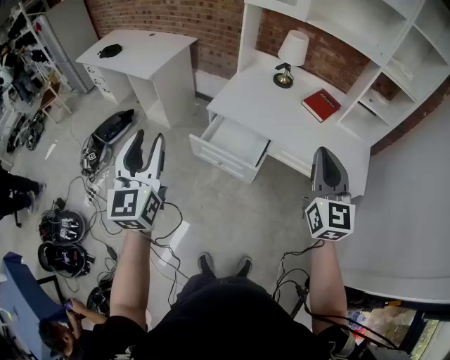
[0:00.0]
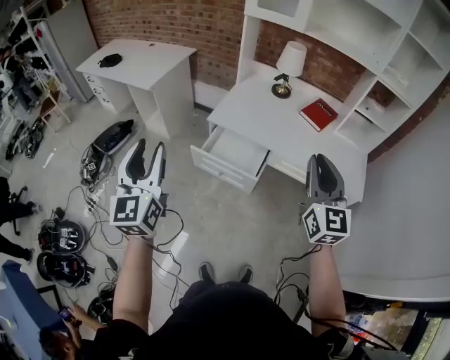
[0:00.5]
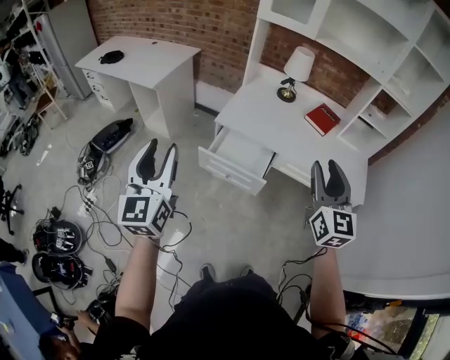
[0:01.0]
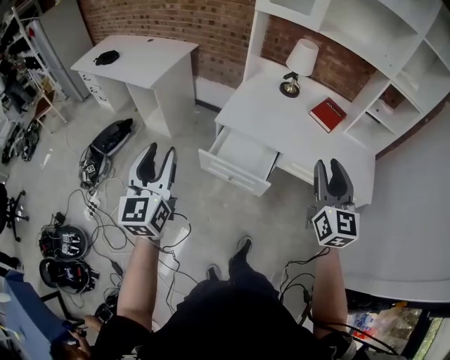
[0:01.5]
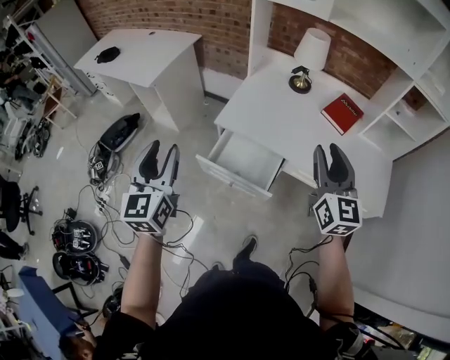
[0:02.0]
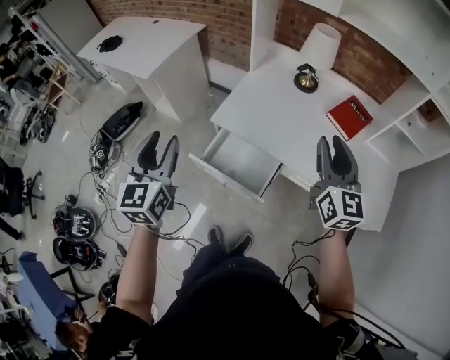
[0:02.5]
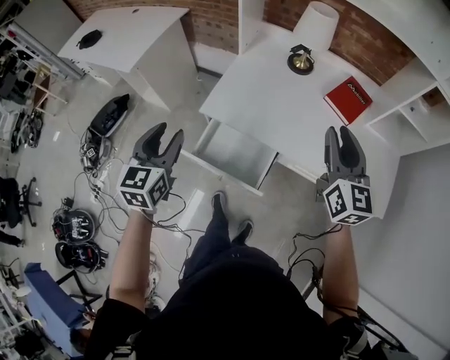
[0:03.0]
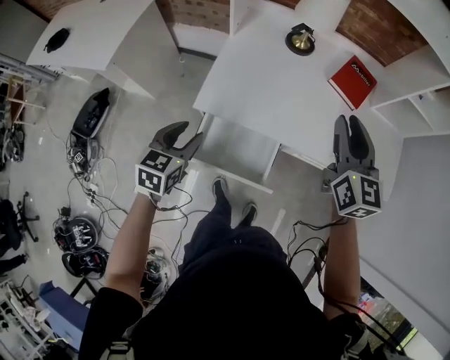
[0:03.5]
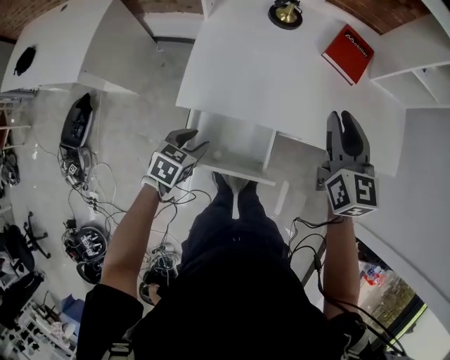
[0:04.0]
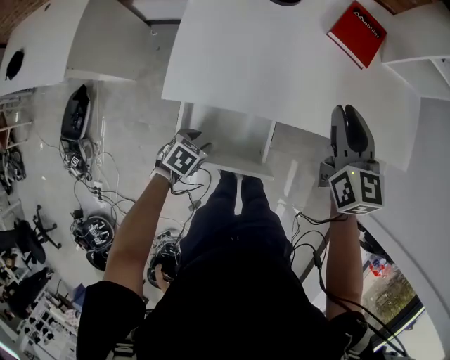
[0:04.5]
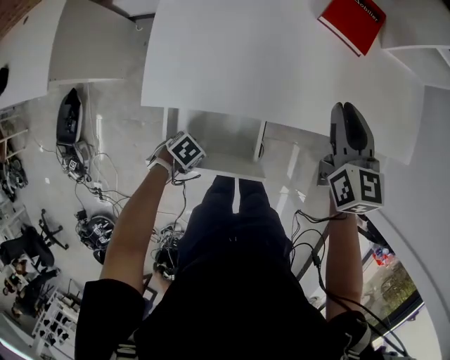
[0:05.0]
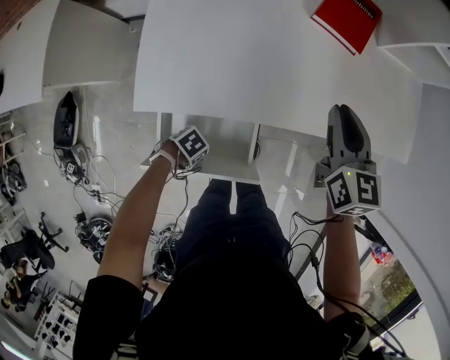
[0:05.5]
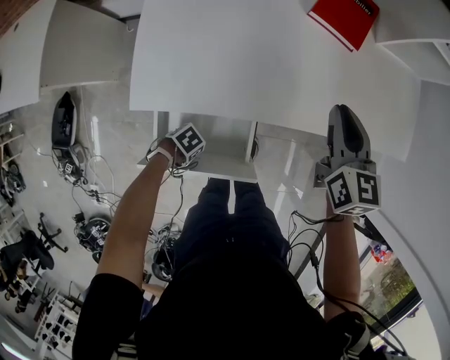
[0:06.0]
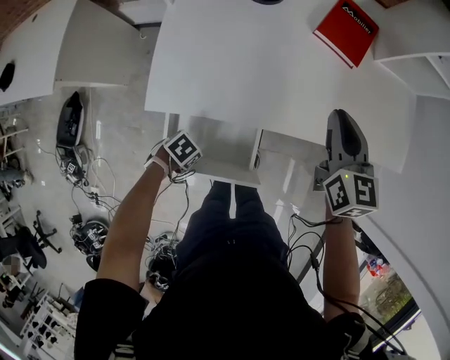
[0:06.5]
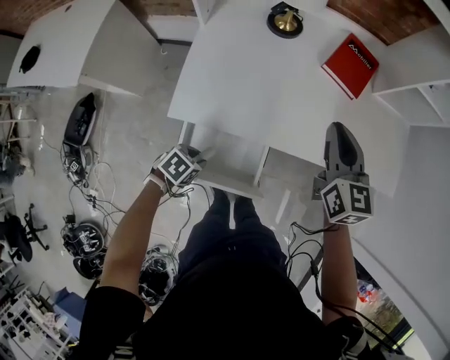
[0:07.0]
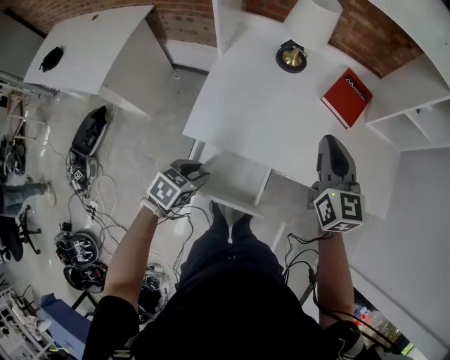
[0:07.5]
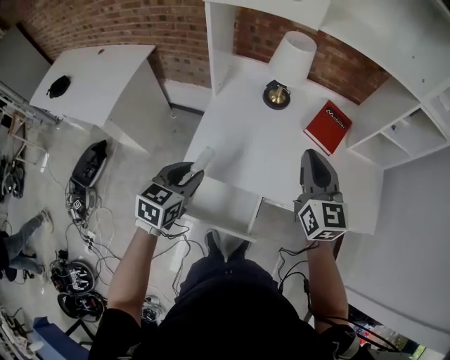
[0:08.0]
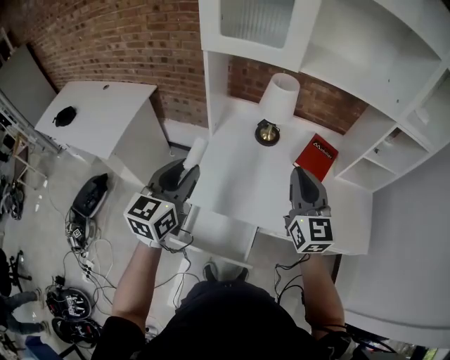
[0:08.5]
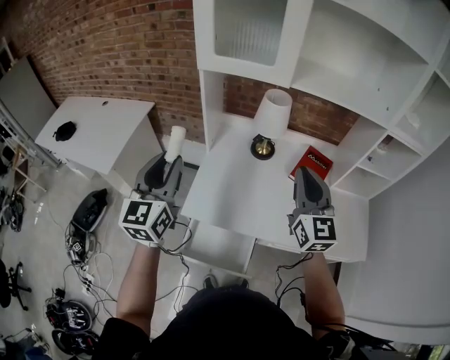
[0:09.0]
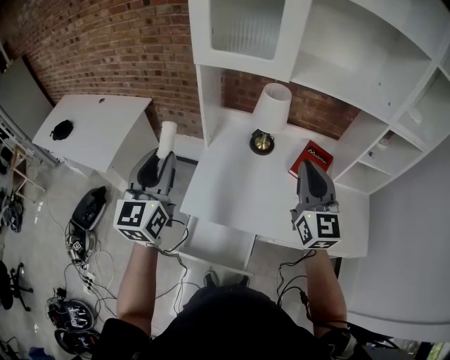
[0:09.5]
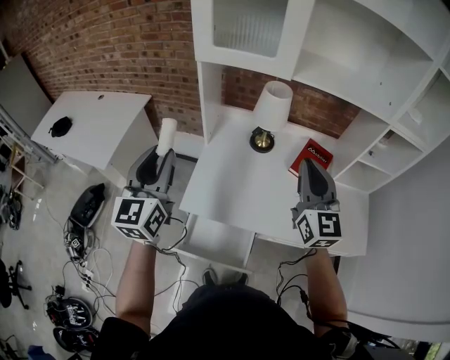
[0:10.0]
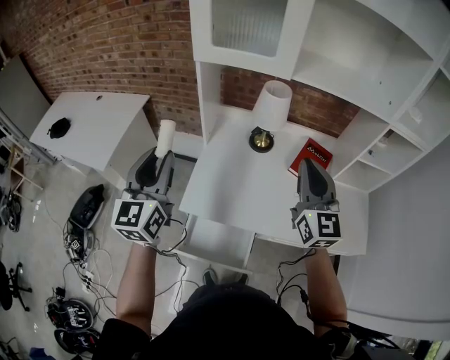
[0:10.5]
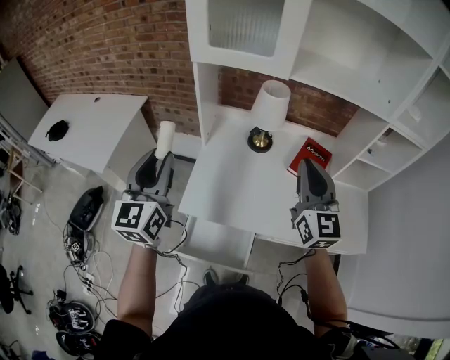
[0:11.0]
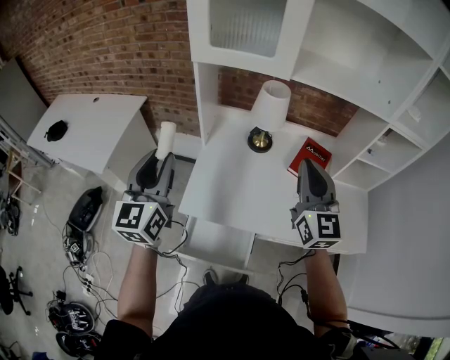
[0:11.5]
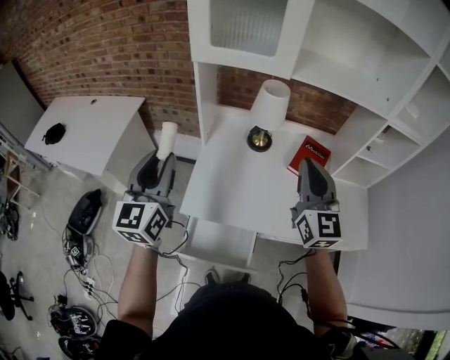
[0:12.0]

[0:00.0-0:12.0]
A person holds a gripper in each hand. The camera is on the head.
0:00.0 to 0:02.0: The left gripper heads forward and downward, covering about 20 cm. The right gripper heads forward, covering approximately 20 cm, and opens its fingers.
0:02.0 to 0:04.0: The left gripper shifts approximately 35 cm downward, and points its fingers approximately 50 degrees further downward. Meanwhile the right gripper changes place by roughly 25 cm, and changes its angle by about 20 degrees.
0:04.0 to 0:06.0: The right gripper goes approximately 15 cm downward; the left gripper goes about 20 cm downward, and turns by some 60 degrees.
0:06.0 to 0:08.0: The left gripper heads upward, covering roughly 40 cm, and angles its fingers upward, by about 30 degrees. The right gripper moves upward, roughly 20 cm, and swivels some 30 degrees.
0:08.0 to 0:10.0: The right gripper shifts roughly 10 cm upward. The left gripper moves upward, roughly 25 cm, and tilts its fingers roughly 40 degrees upward.
0:10.0 to 0:12.0: The grippers make only small movements.

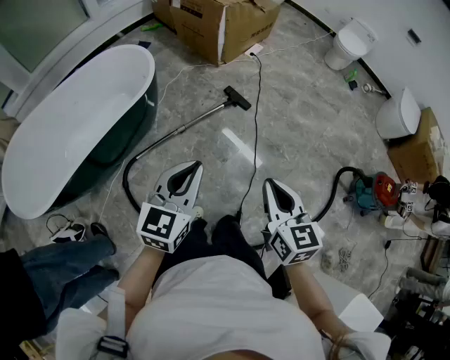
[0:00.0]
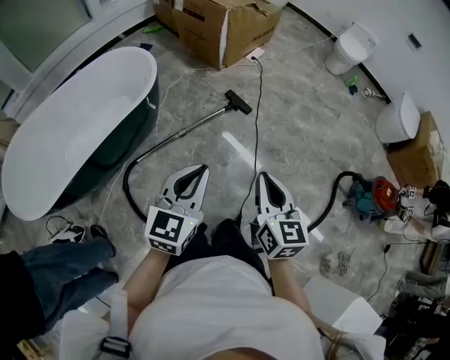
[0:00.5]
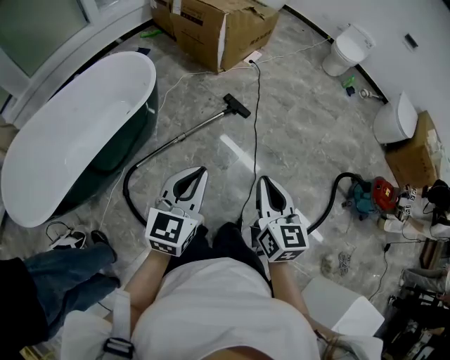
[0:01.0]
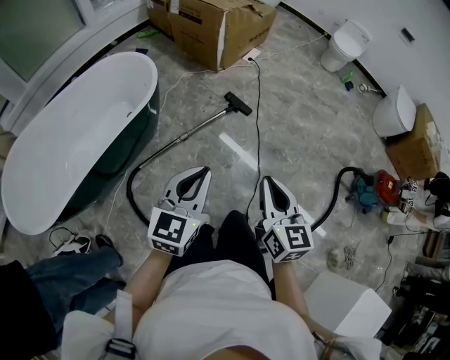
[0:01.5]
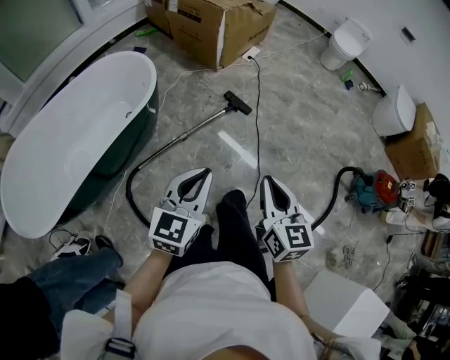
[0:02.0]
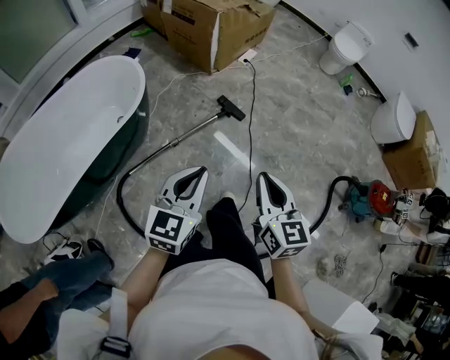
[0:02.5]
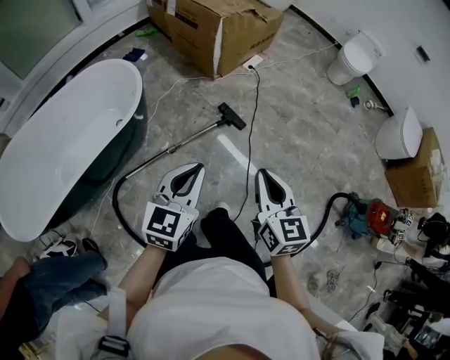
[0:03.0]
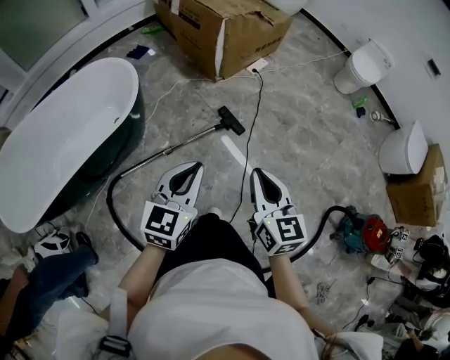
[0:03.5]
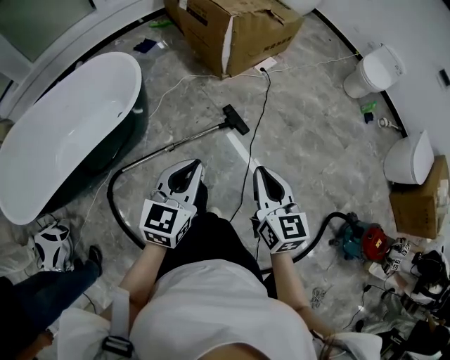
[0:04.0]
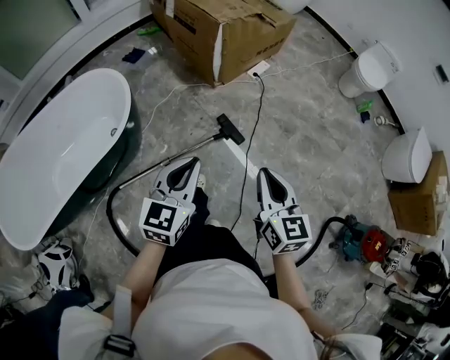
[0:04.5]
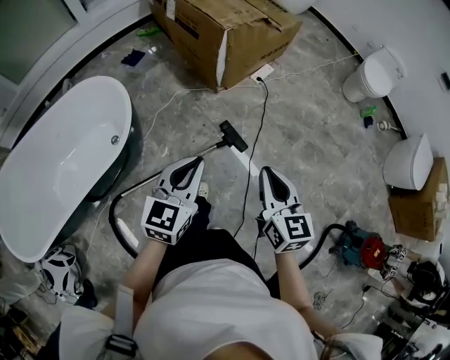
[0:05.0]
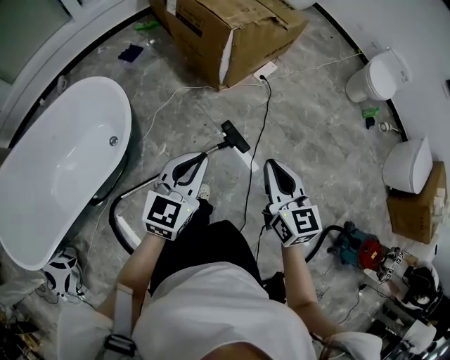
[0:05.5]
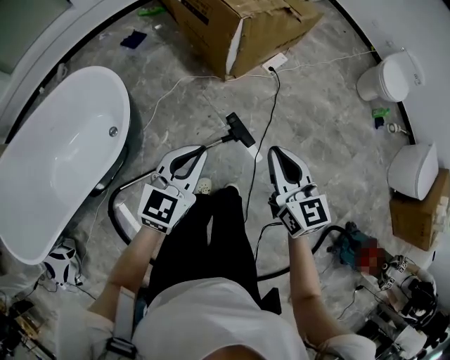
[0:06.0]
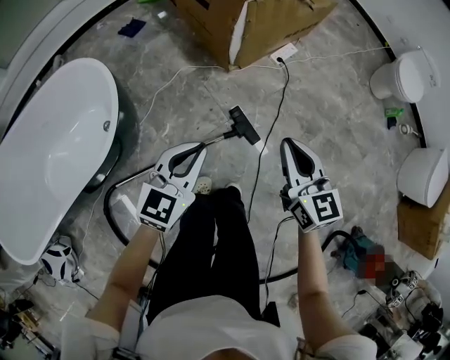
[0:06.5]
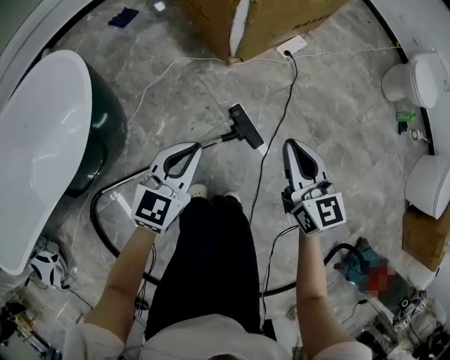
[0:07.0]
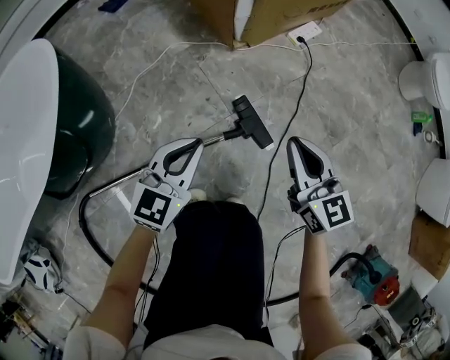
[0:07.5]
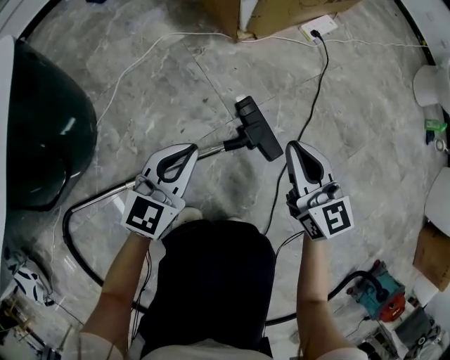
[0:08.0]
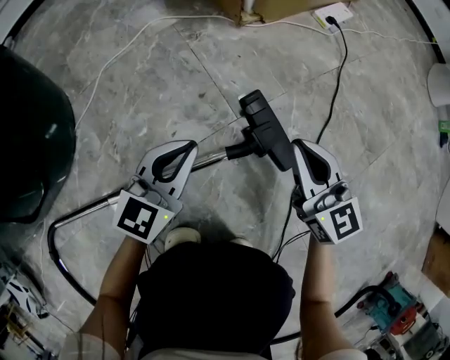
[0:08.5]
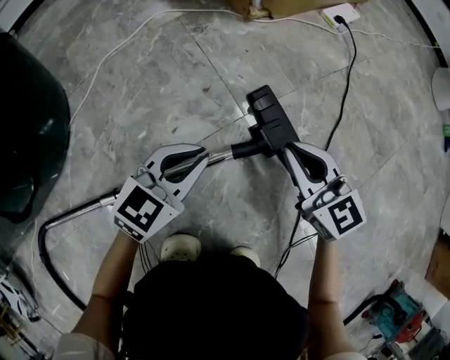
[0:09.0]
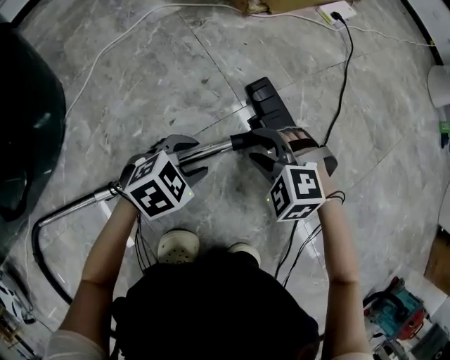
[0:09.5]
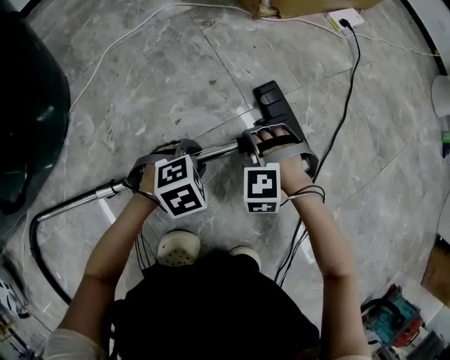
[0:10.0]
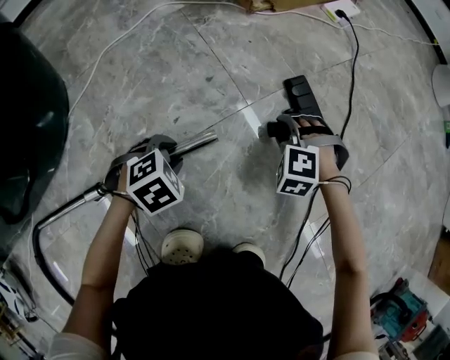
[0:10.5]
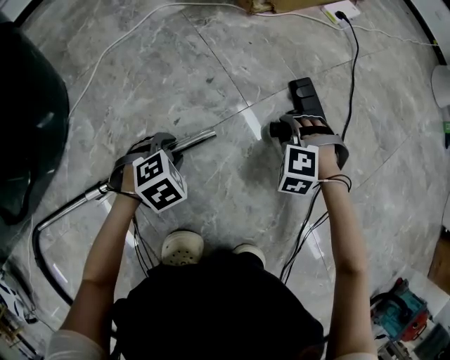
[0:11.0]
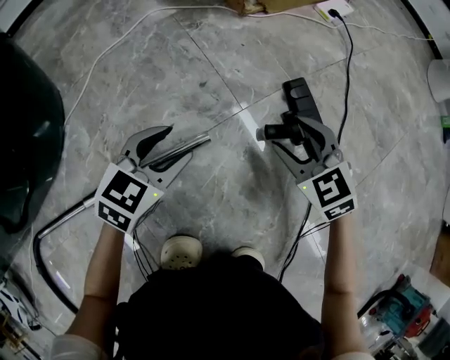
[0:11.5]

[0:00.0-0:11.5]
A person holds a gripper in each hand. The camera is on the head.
0:00.0 to 0:02.0: The right gripper moves to the left, approximately 5 cm.
0:02.0 to 0:04.0: Both grippers move forward and to the right, roughly 25 cm.
0:04.0 to 0:06.0: The grippers both shift forward by roughly 30 cm.
0:06.0 to 0:07.5: The grippers both shift downward by about 35 cm.
0:07.5 to 0:09.5: The grippers both shift downward by roughly 40 cm. The right gripper points its fingers roughly 40 degrees further downward, and opens up. The left gripper tips its fingers downward by approximately 40 degrees, and opens.
0:09.5 to 0:11.5: The left gripper travels upward by approximately 5 cm, and turns by roughly 30 degrees. Meanwhile the right gripper moves approximately 10 cm, and swivels roughly 40 degrees.

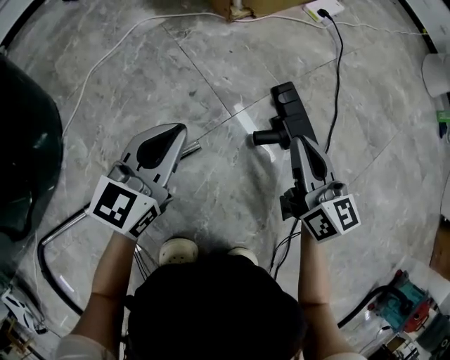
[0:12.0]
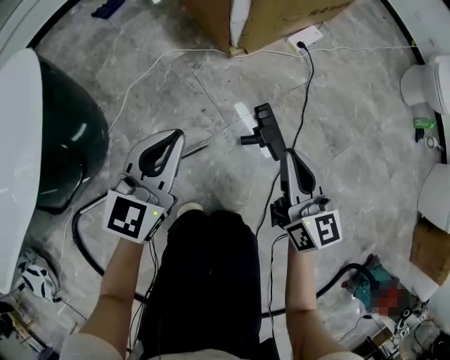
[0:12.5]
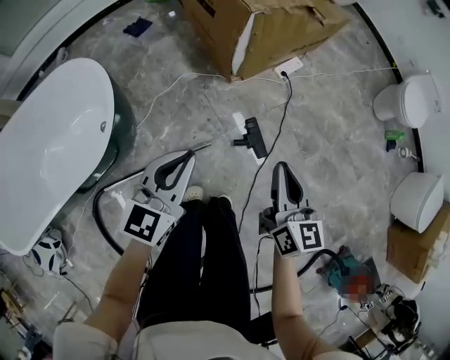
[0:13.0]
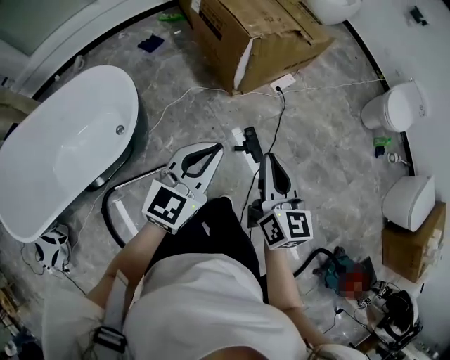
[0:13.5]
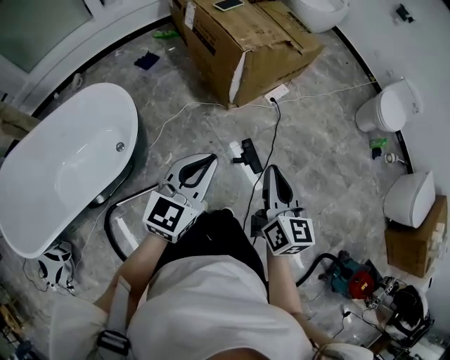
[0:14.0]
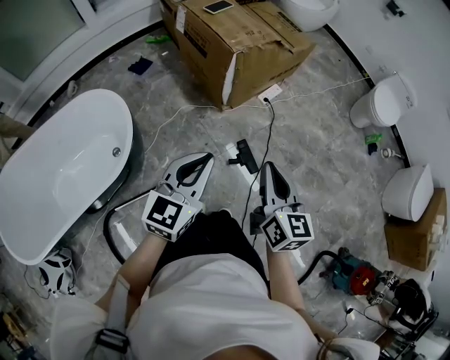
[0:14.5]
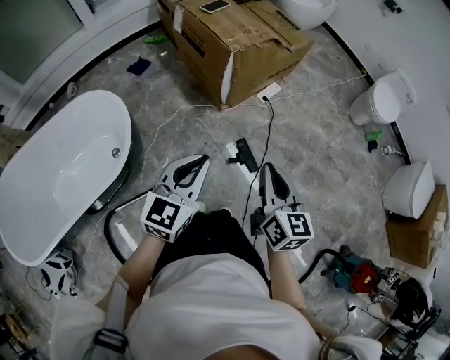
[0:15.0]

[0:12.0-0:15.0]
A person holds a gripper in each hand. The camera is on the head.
0:12.0 to 0:13.5: The two grippers go approximately 70 cm upward.
0:13.5 to 0:15.0: There are only small adjustments of the grippers.
